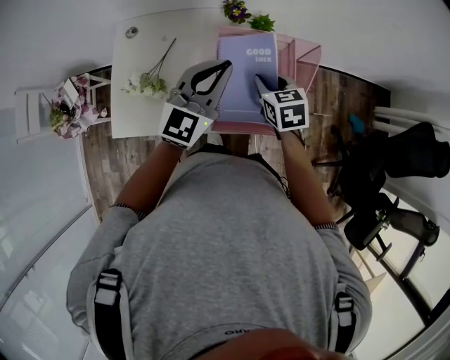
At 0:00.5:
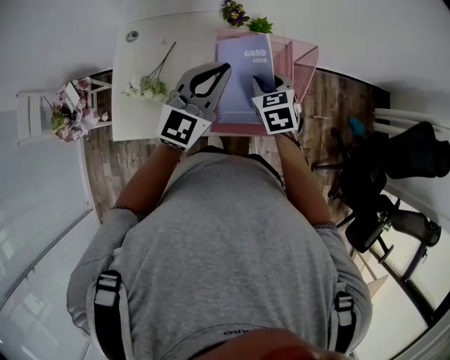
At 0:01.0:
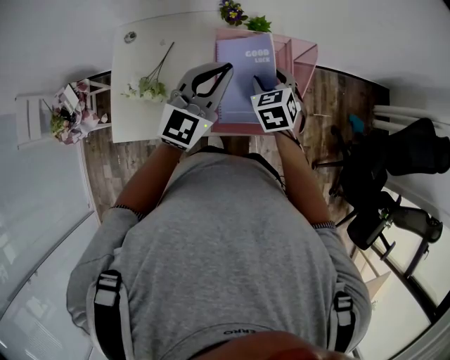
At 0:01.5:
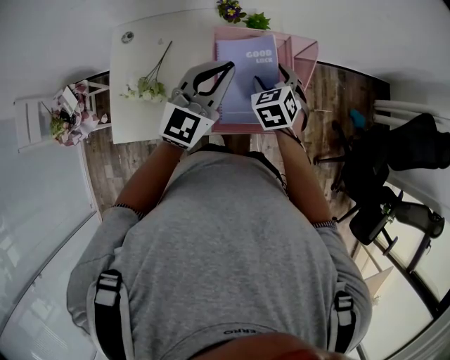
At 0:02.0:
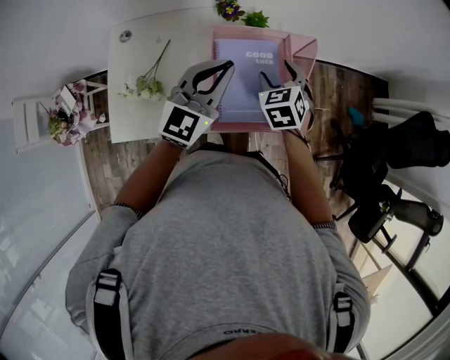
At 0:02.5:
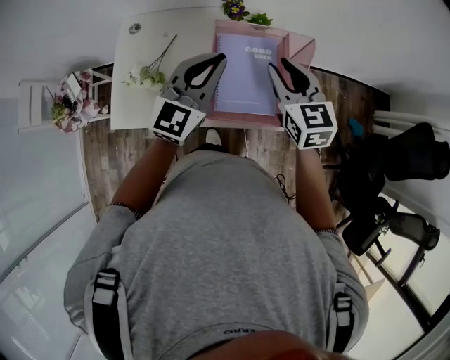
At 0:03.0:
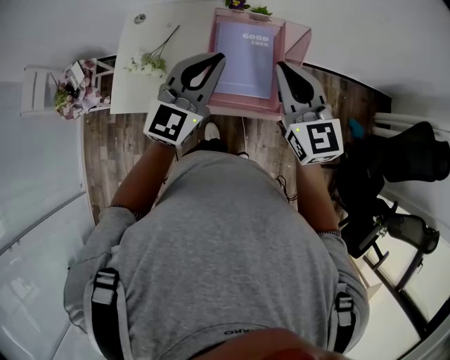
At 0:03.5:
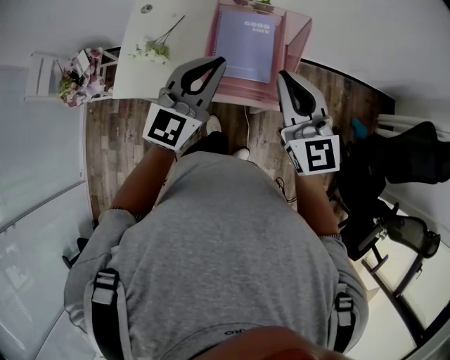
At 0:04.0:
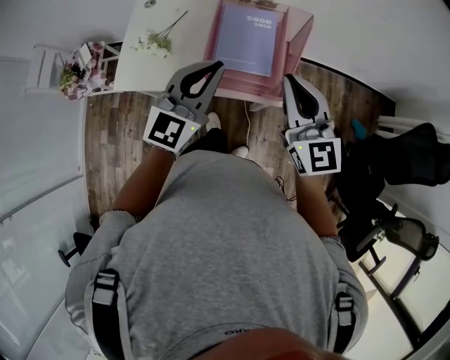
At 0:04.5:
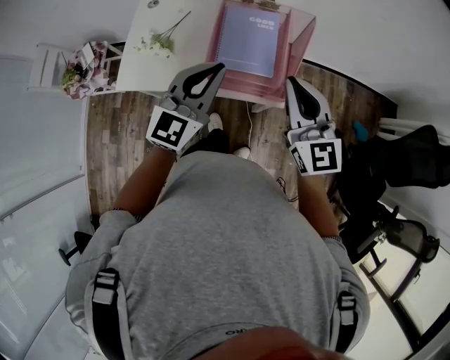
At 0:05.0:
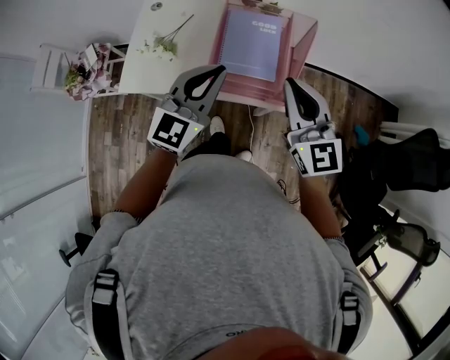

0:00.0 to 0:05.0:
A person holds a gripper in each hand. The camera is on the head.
0:00.0 to 0:02.5: The right gripper travels upward by roughly 10 cm, turns by roughly 20 degrees, and opens, then closes once more.
0:02.5 to 0:05.0: Both grippers travel together backward, roughly 15 cm. The right gripper turns by approximately 20 degrees, and closes.

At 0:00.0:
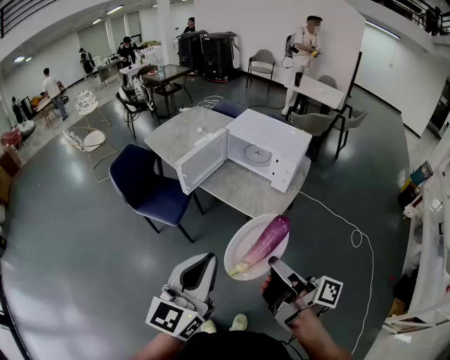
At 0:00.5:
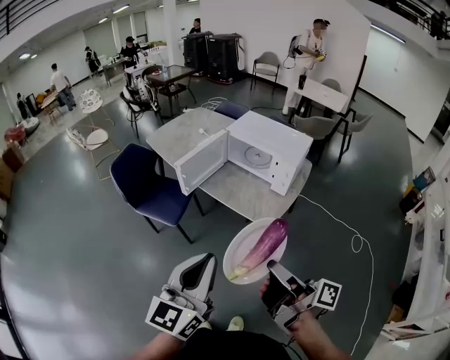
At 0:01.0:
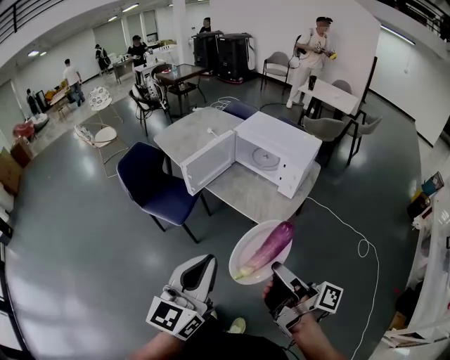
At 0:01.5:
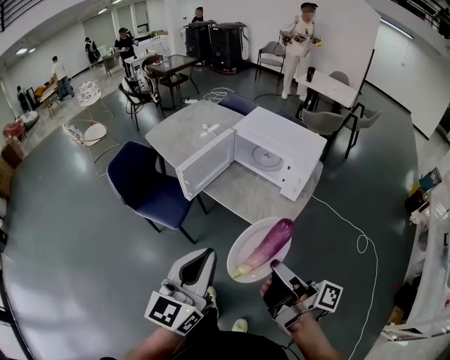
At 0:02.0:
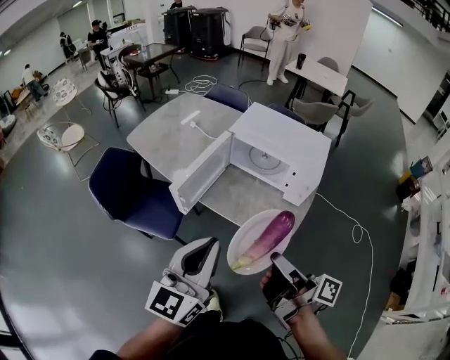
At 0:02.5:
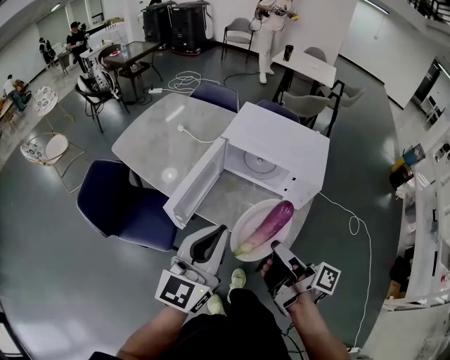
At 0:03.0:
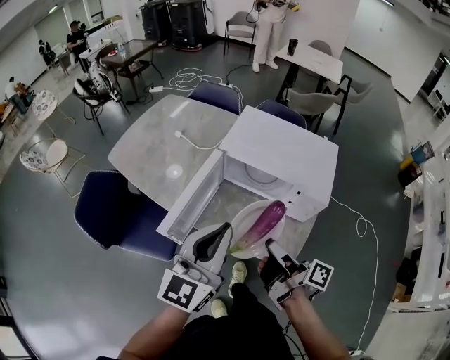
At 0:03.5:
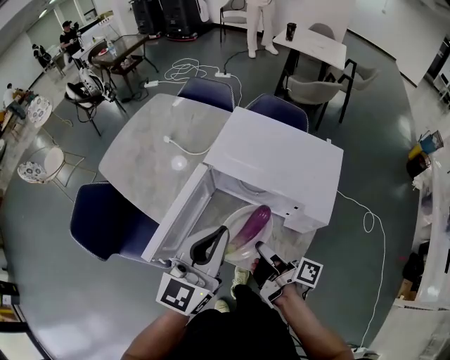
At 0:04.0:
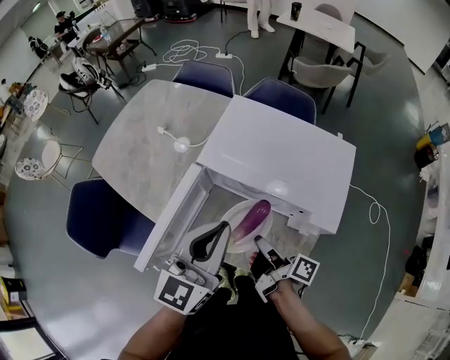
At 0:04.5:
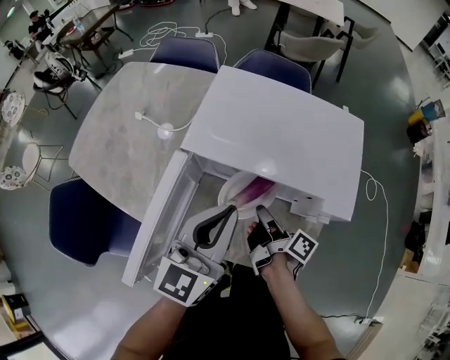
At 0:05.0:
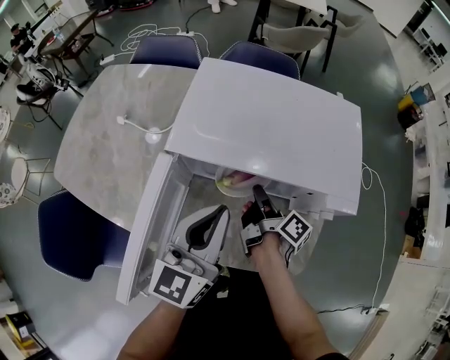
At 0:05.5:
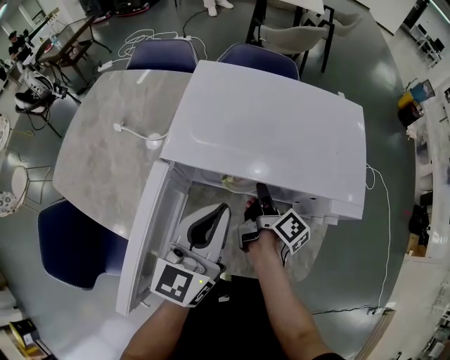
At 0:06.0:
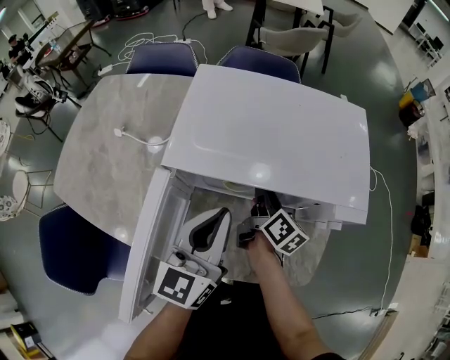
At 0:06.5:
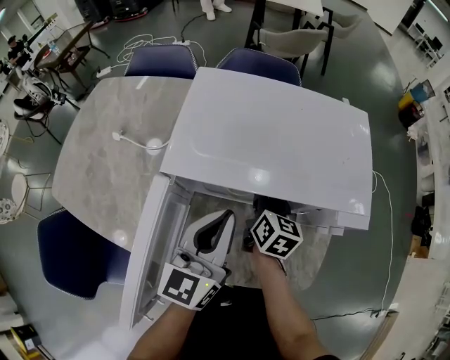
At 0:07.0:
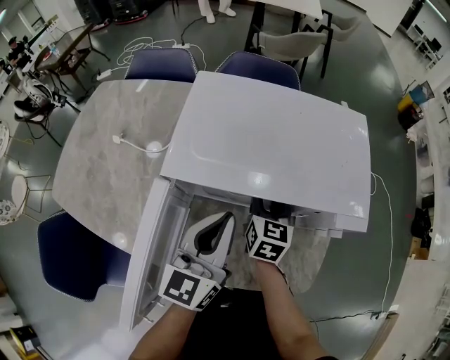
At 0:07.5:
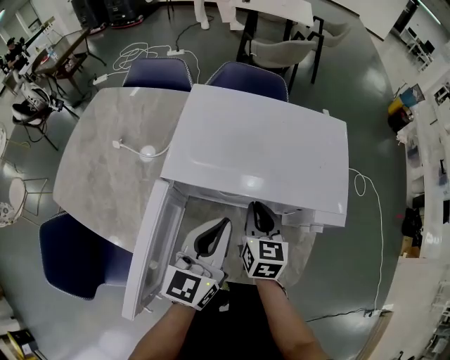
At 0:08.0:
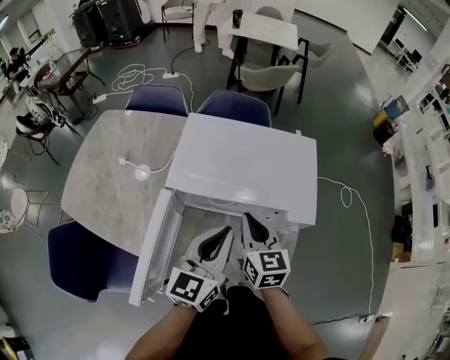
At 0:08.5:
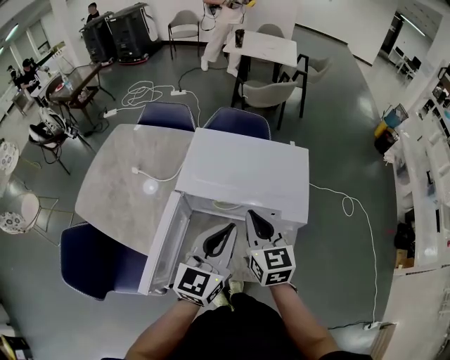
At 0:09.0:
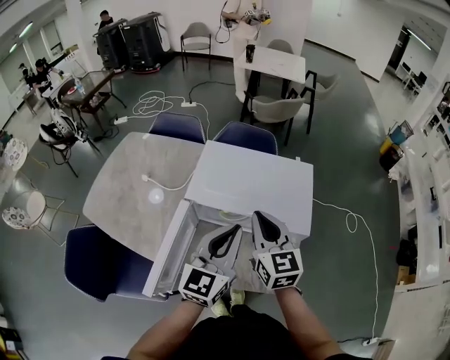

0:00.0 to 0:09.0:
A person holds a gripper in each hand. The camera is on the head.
0:00.0 to 0:02.0: The grippers both shift forward by approximately 25 cm.
0:02.0 to 0:04.5: The left gripper moves forward, some 40 cm. The right gripper moves forward and downward, some 50 cm, and changes its angle by approximately 30 degrees.
0:04.5 to 0:07.0: The right gripper travels forward by roughly 10 cm, rolls counterclockwise, seen from behind, by roughly 70 degrees, and opens its fingers. Meanwhile the left gripper is displaced downward and forward by approximately 10 cm.
0:07.0 to 0:09.0: The left gripper moves upward, some 20 cm, while the right gripper goes roughly 30 cm upward, turns by some 30 degrees, and closes up.

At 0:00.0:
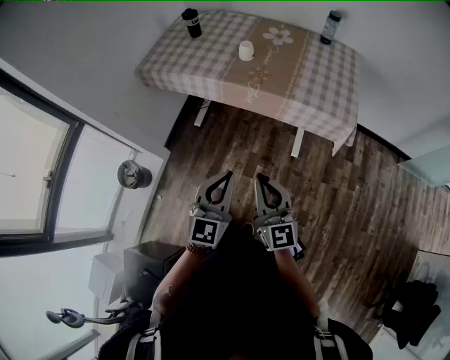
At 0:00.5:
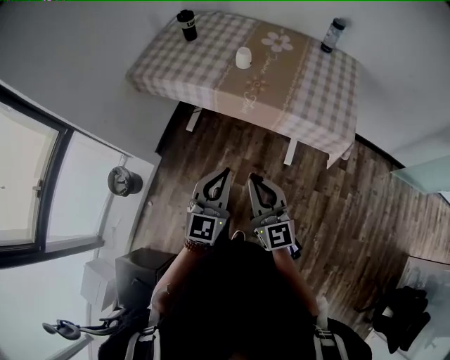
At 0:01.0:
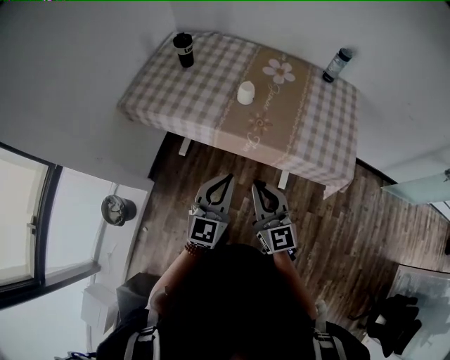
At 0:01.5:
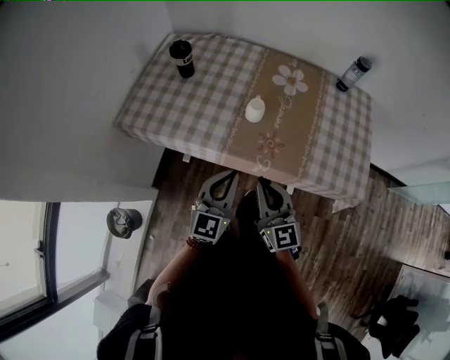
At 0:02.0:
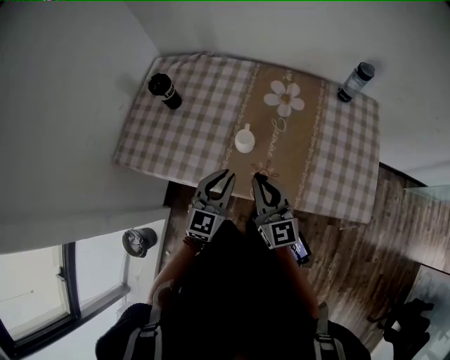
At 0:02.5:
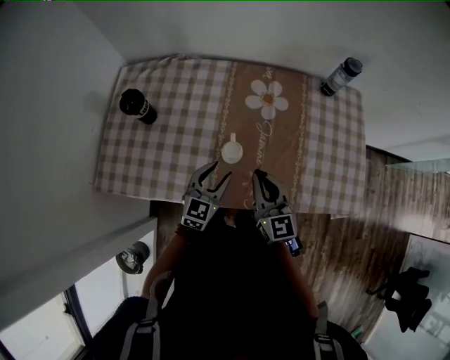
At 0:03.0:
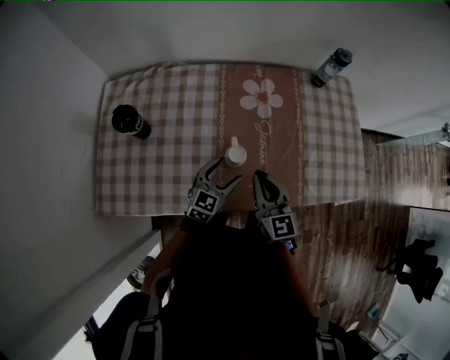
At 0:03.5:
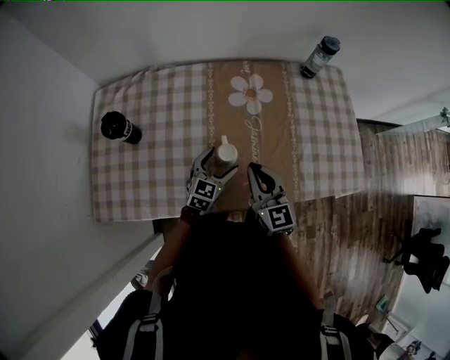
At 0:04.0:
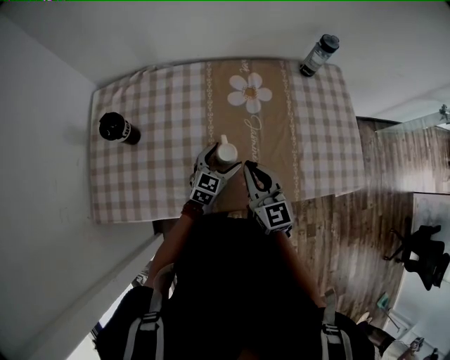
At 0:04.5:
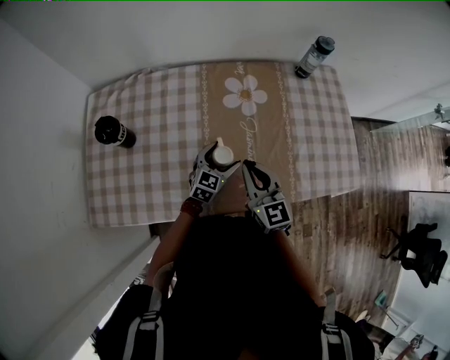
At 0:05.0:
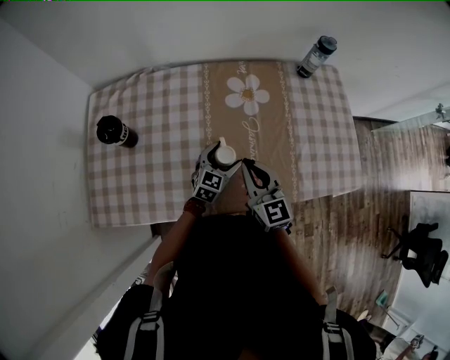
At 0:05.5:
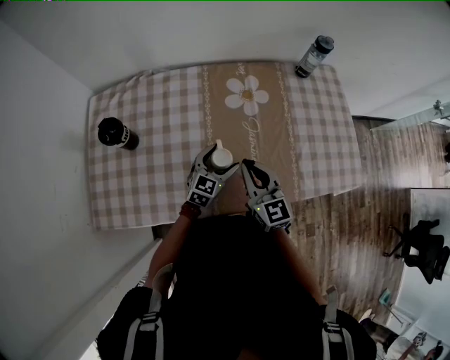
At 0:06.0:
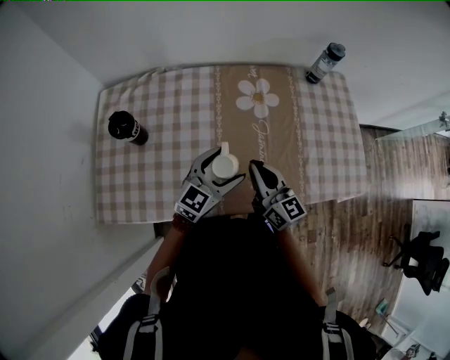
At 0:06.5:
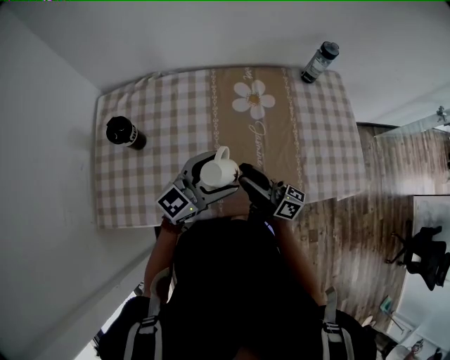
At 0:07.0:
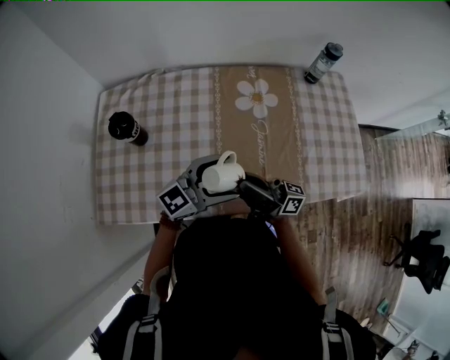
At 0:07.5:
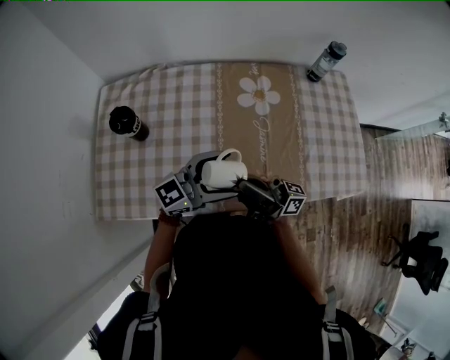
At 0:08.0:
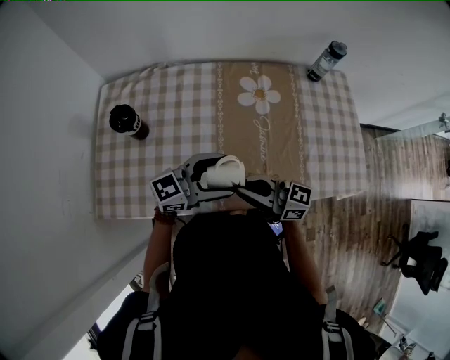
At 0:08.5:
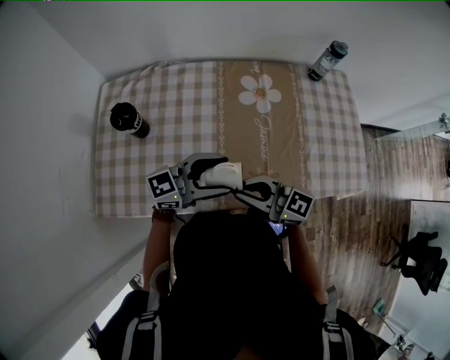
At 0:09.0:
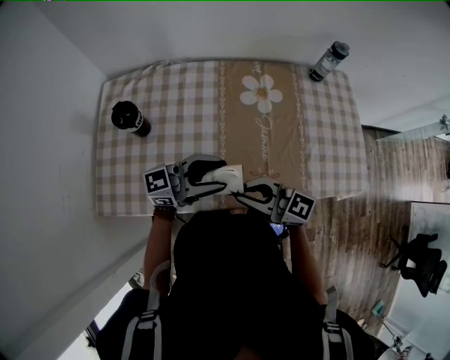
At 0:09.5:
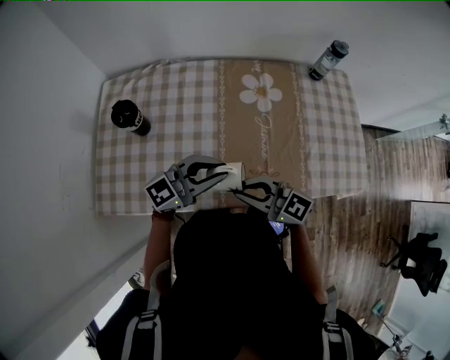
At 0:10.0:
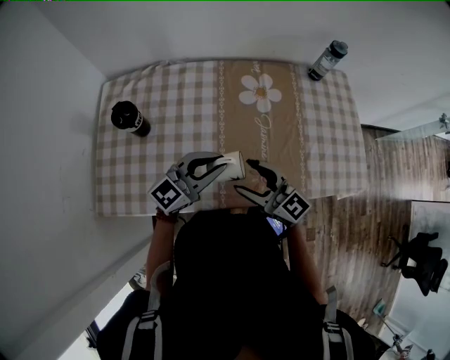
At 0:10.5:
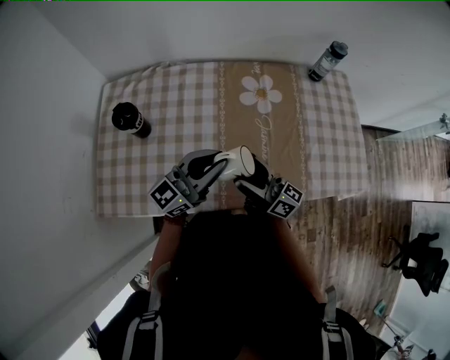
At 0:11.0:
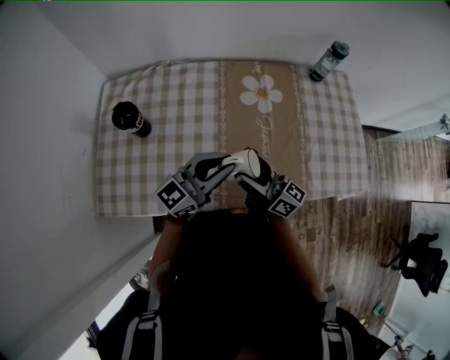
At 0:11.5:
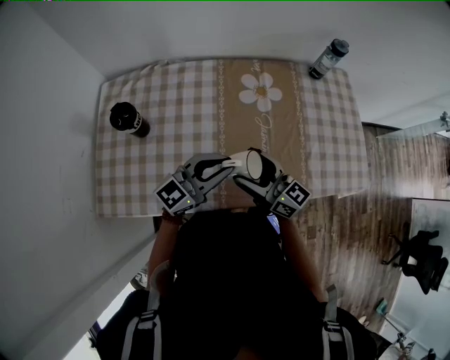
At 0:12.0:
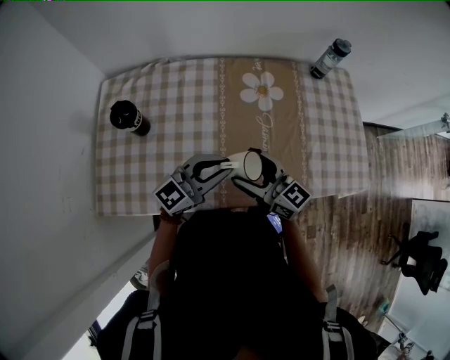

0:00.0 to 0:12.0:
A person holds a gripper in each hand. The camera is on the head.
0:00.0 to 0:02.0: The two grippers travel together, forward, approximately 40 cm.
0:02.0 to 0:04.0: The left gripper travels downward and forward by approximately 25 cm, swivels some 30 degrees, and opens up, while the right gripper heads forward and downward, covering approximately 10 cm.
0:04.0 to 0:06.0: The left gripper moves upward, roughly 15 cm. Meanwhile the right gripper turns by some 20 degrees.
0:06.0 to 0:08.0: The left gripper ends up approximately 5 cm from where it was, and changes its angle by about 30 degrees, while the right gripper moves some 10 cm, swivels roughly 40 degrees, and opens, then closes again.
0:08.0 to 0:10.0: The left gripper closes, while the right gripper rotates about 30 degrees, and opens its fingers.

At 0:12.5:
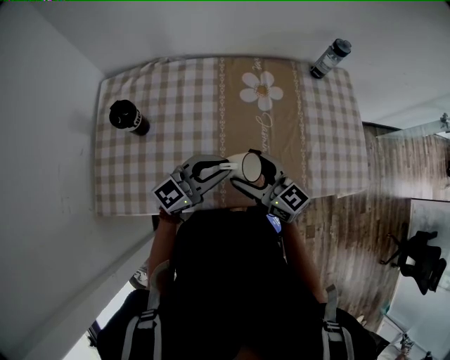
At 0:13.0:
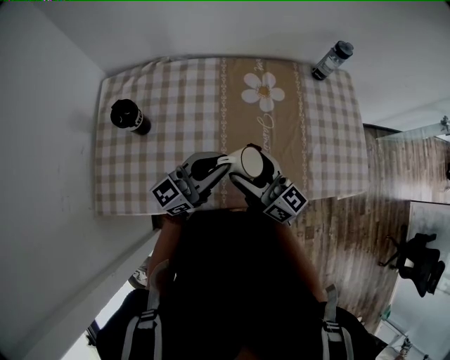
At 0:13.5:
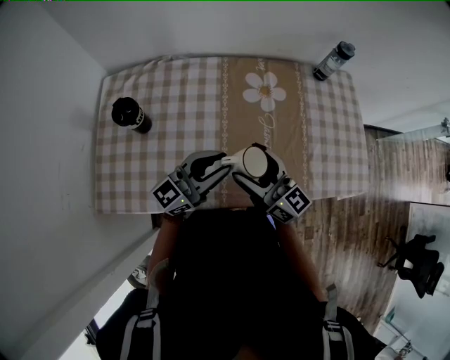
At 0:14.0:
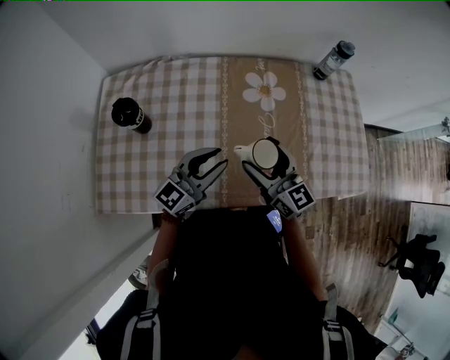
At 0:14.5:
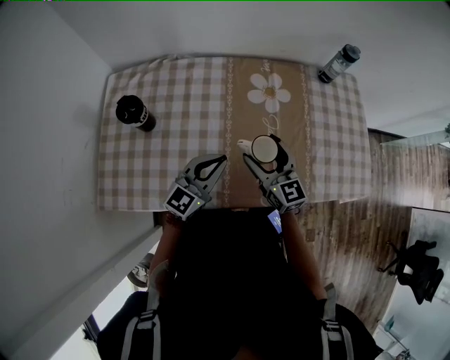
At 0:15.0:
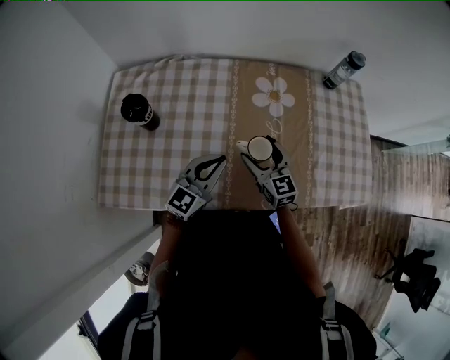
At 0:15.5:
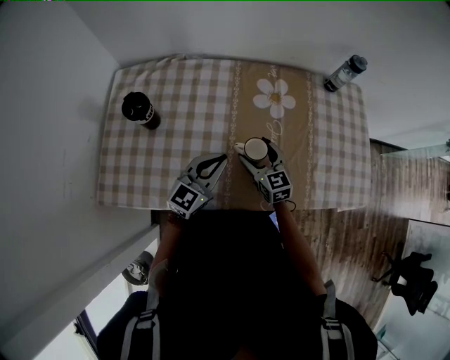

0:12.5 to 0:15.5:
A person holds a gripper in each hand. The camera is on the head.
0:12.5 to 0:14.0: The right gripper moves some 5 cm.
0:14.0 to 0:15.5: The right gripper goes roughly 15 cm downward, and rotates roughly 20 degrees.
